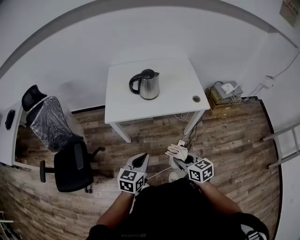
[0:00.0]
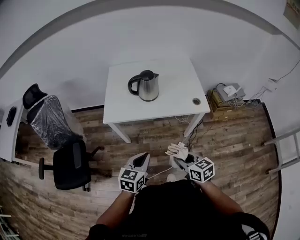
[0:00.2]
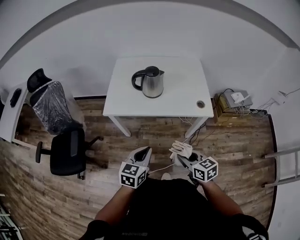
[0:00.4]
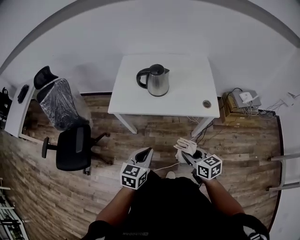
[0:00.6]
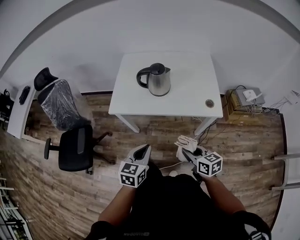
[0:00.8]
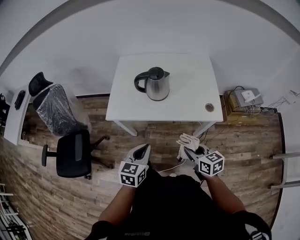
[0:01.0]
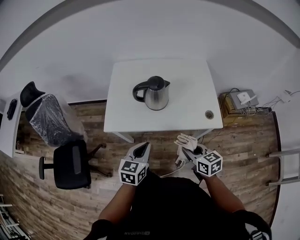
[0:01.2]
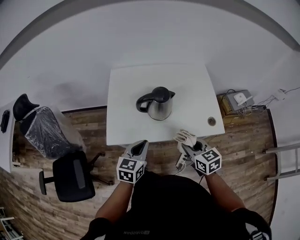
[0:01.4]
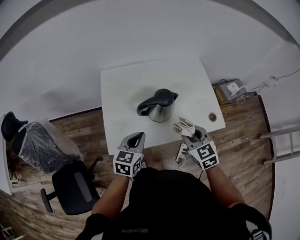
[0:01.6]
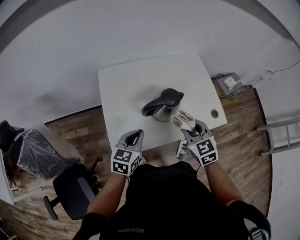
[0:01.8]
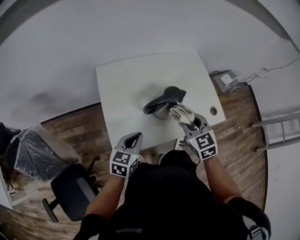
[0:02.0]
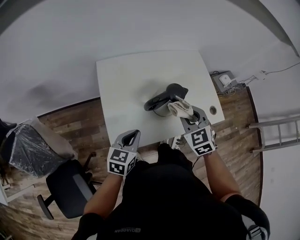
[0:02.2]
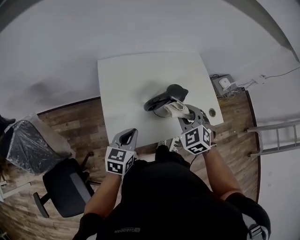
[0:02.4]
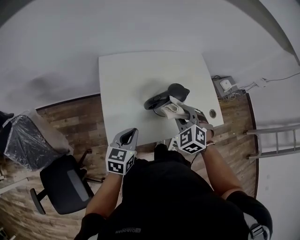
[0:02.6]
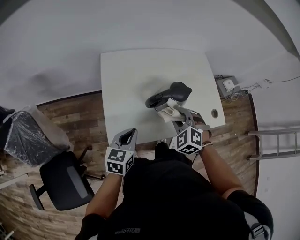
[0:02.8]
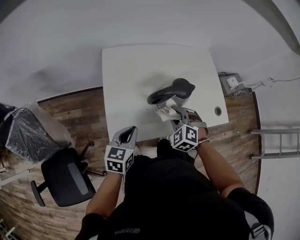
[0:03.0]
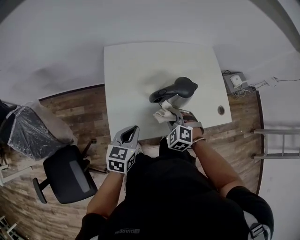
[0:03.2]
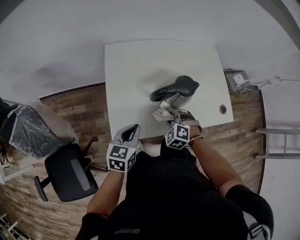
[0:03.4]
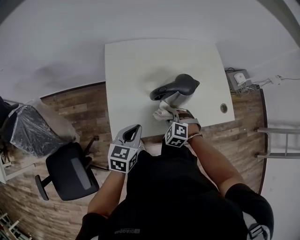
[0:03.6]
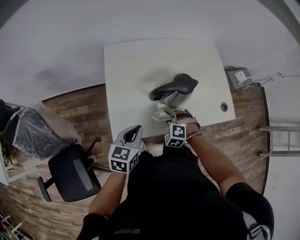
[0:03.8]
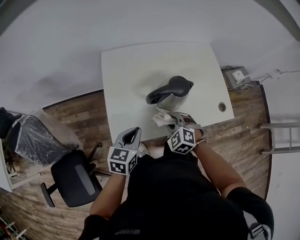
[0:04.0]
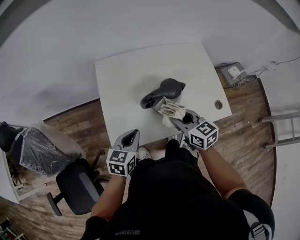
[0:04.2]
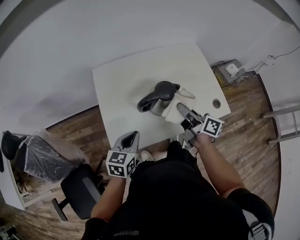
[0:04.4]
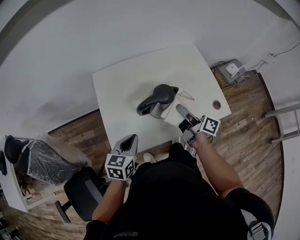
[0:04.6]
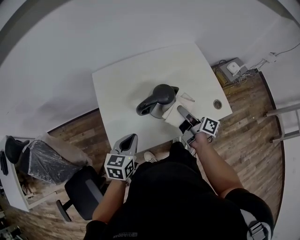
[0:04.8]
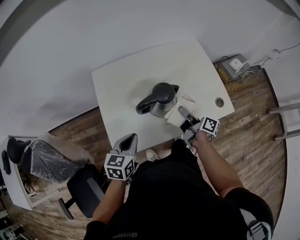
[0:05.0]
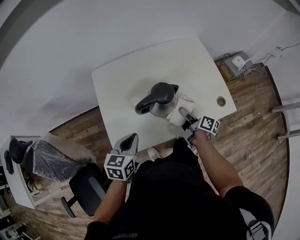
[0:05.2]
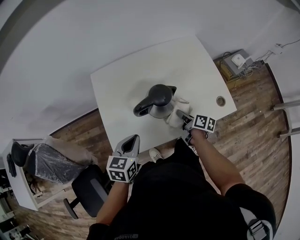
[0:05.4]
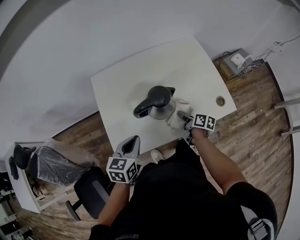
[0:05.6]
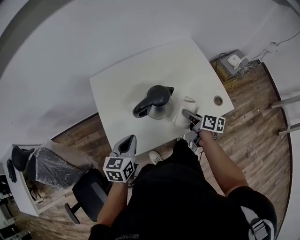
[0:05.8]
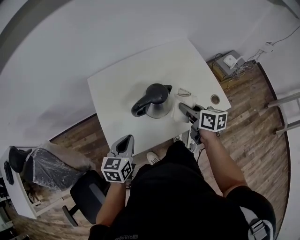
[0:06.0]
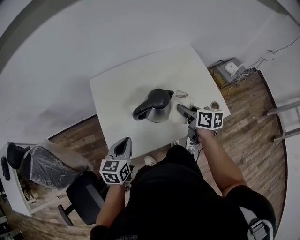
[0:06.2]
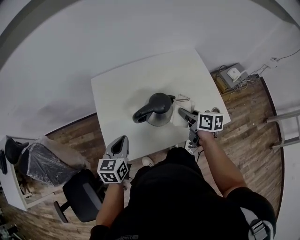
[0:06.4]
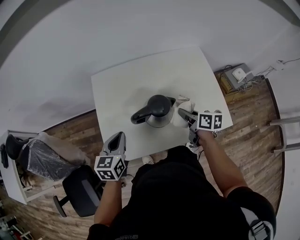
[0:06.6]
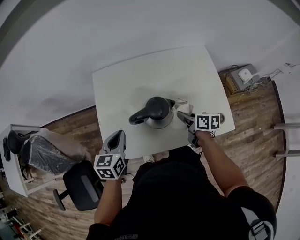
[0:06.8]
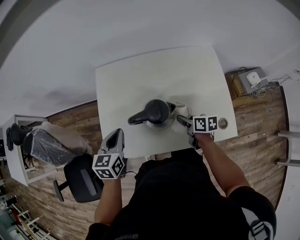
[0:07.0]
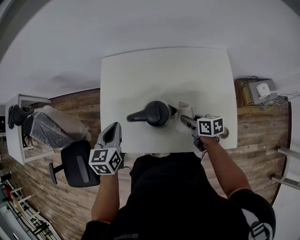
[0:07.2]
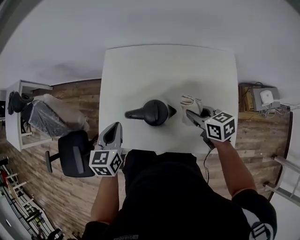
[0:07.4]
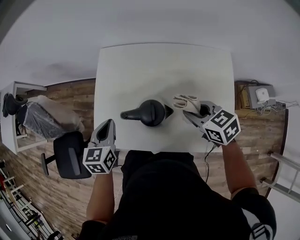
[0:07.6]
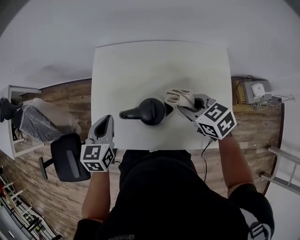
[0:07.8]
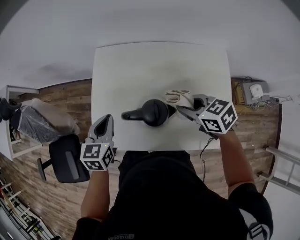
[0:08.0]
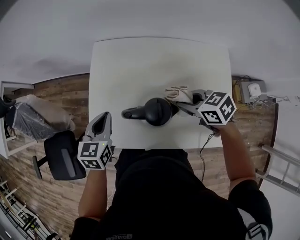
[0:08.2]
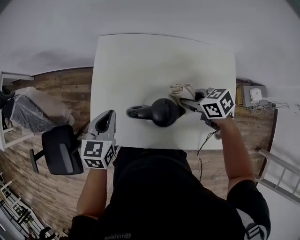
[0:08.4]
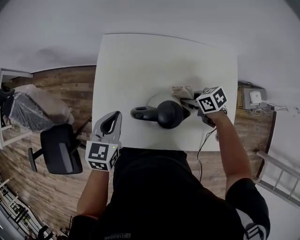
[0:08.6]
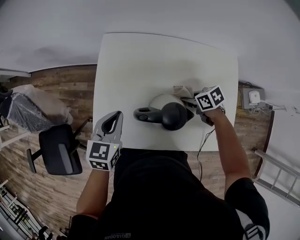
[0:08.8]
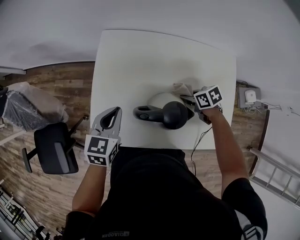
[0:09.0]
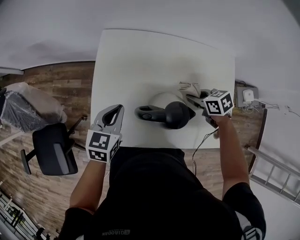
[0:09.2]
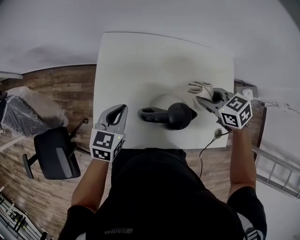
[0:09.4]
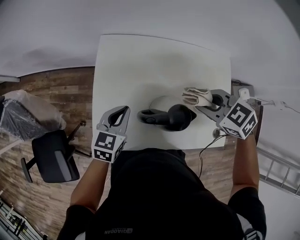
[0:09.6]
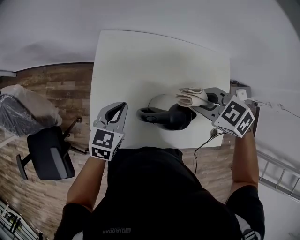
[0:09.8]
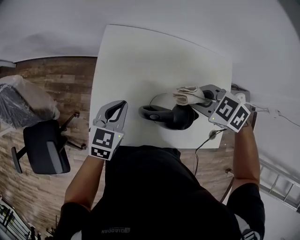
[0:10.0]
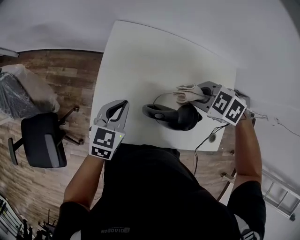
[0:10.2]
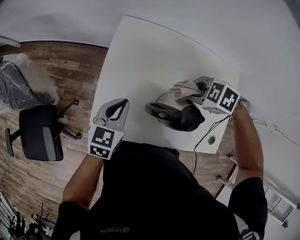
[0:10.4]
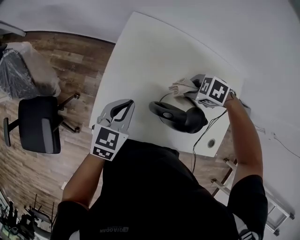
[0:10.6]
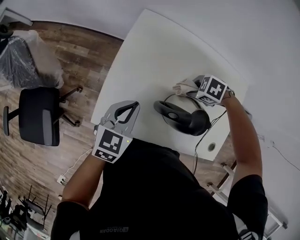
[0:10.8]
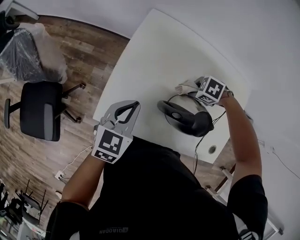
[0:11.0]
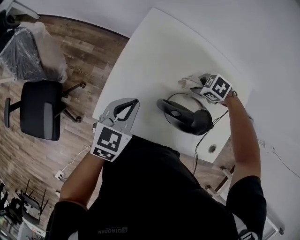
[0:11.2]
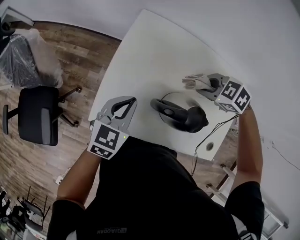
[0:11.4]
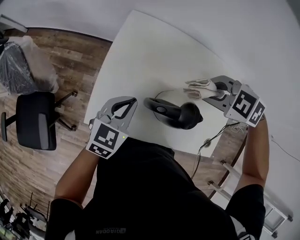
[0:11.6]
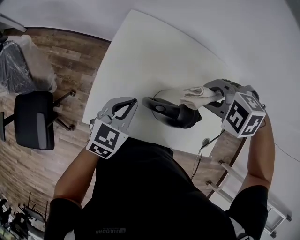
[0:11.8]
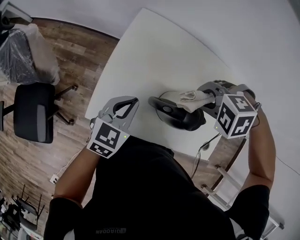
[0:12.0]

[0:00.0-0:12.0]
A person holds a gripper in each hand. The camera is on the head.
0:00.0 to 0:01.6: Both grippers move forward, roughly 35 cm. The right gripper turns by about 30 degrees.
0:01.6 to 0:03.0: The right gripper moves to the left and downward, approximately 15 cm, and twists roughly 40 degrees counterclockwise, seen from behind; the left gripper heads to the left and downward, covering some 10 cm.
0:03.0 to 0:04.4: The left gripper ends up roughly 5 cm from where it was; the right gripper shifts about 15 cm upward and to the right, and rotates around the line of its fingers by approximately 100 degrees, clockwise from behind.
0:04.4 to 0:06.0: The right gripper travels downward and back again, some 20 cm each way, and swivels about 20 degrees.
0:06.0 to 0:07.6: The right gripper moves about 15 cm downward and comes back, and changes its angle by about 60 degrees. The left gripper moves about 10 cm, and changes its angle by some 30 degrees.
0:07.6 to 0:09.0: The left gripper shifts by about 5 cm; the right gripper goes approximately 15 cm downward, and turns by roughly 30 degrees.
0:09.0 to 0:10.4: The right gripper heads upward, covering approximately 10 cm, and rolls counterclockwise, seen from behind, by roughly 50 degrees.
0:10.4 to 0:12.0: The right gripper goes downward and returns, some 10 cm each way, and rotates approximately 40 degrees.

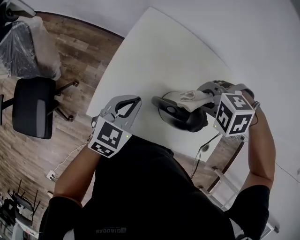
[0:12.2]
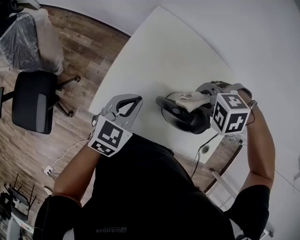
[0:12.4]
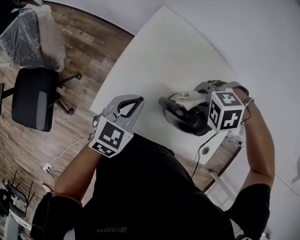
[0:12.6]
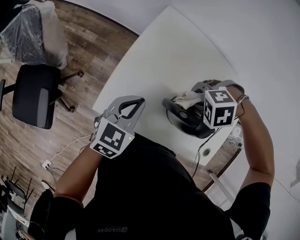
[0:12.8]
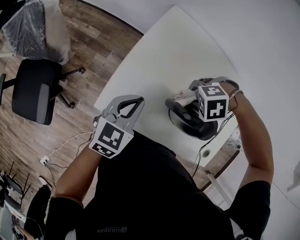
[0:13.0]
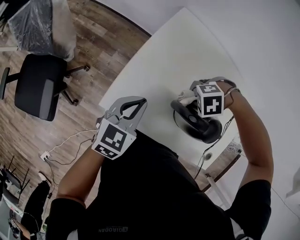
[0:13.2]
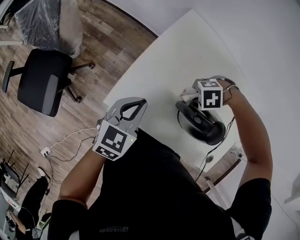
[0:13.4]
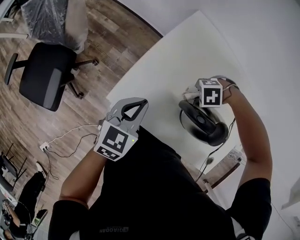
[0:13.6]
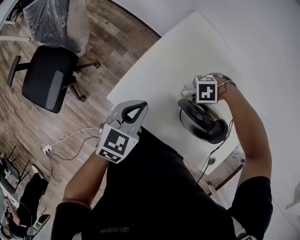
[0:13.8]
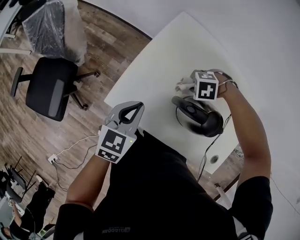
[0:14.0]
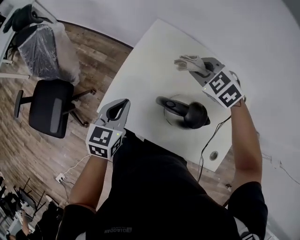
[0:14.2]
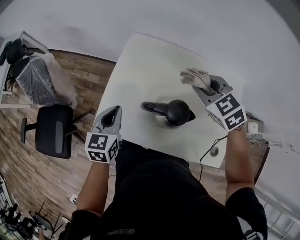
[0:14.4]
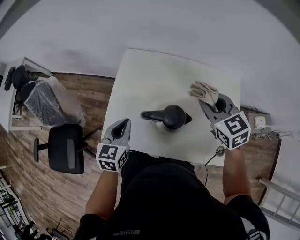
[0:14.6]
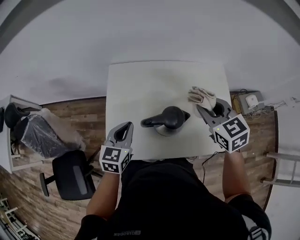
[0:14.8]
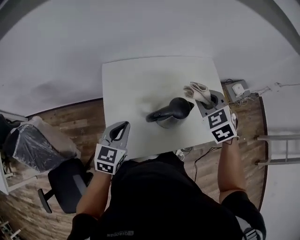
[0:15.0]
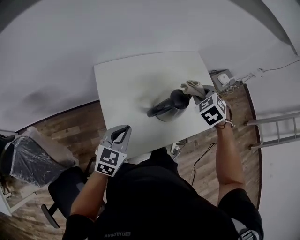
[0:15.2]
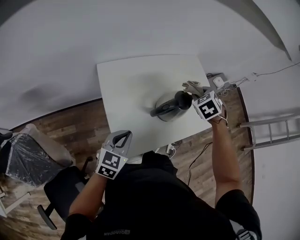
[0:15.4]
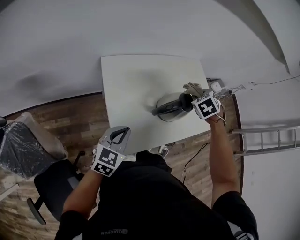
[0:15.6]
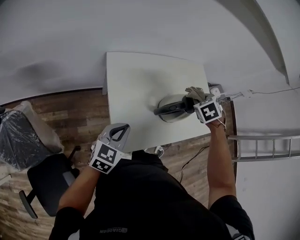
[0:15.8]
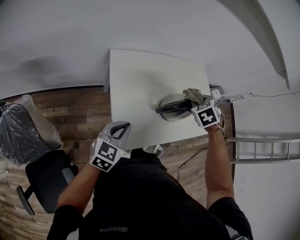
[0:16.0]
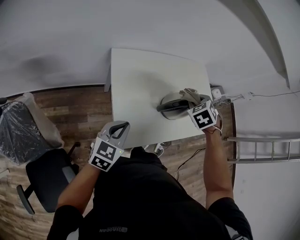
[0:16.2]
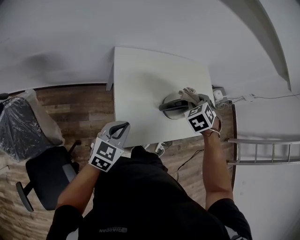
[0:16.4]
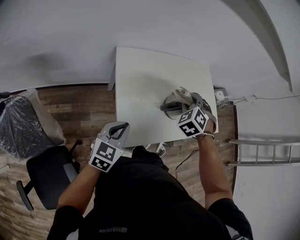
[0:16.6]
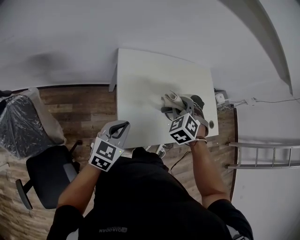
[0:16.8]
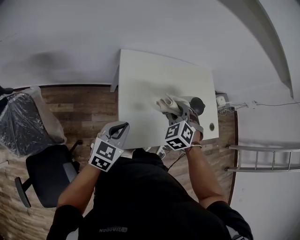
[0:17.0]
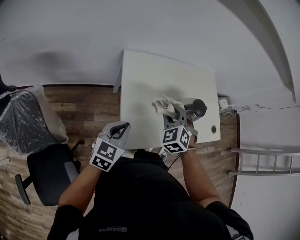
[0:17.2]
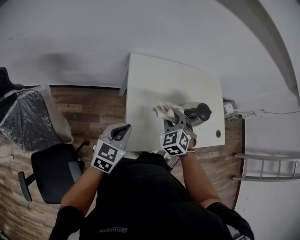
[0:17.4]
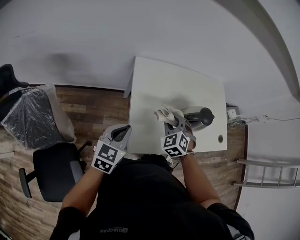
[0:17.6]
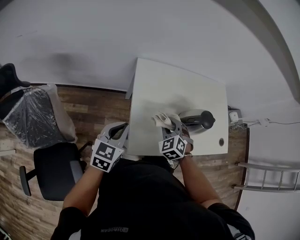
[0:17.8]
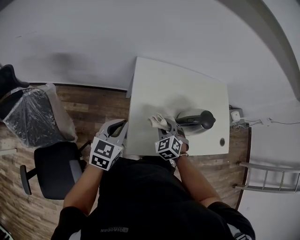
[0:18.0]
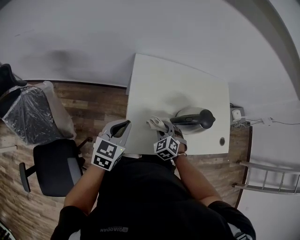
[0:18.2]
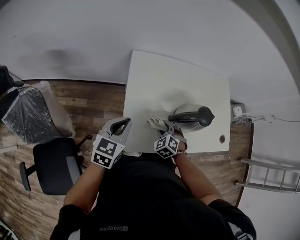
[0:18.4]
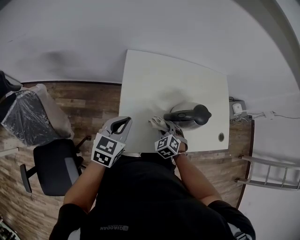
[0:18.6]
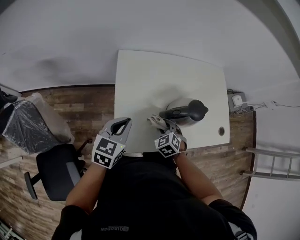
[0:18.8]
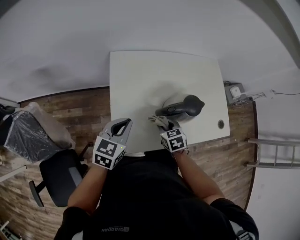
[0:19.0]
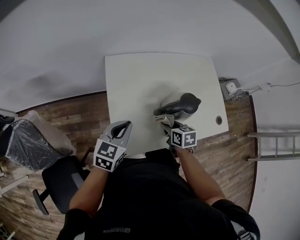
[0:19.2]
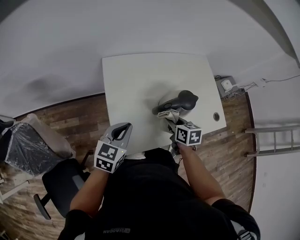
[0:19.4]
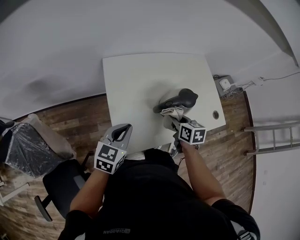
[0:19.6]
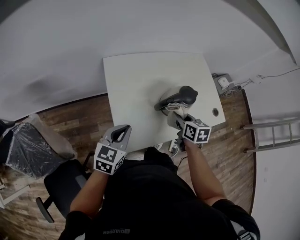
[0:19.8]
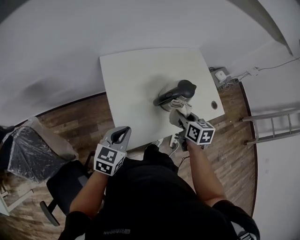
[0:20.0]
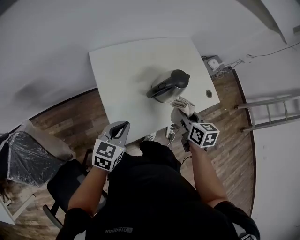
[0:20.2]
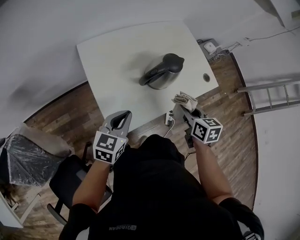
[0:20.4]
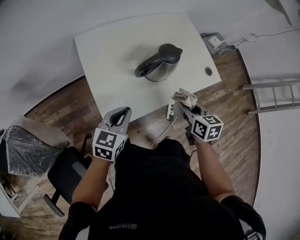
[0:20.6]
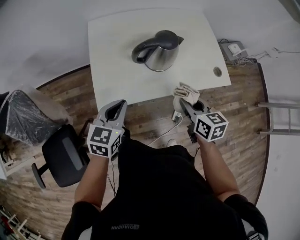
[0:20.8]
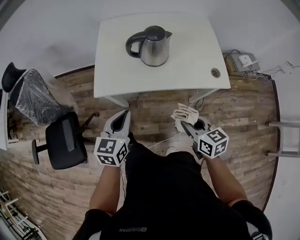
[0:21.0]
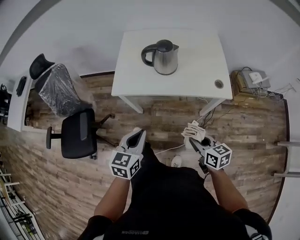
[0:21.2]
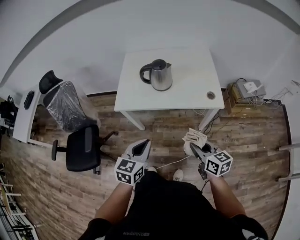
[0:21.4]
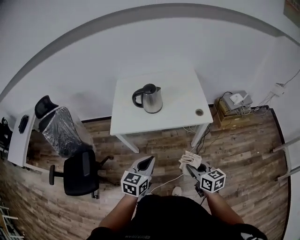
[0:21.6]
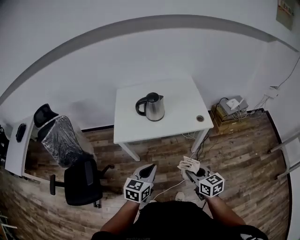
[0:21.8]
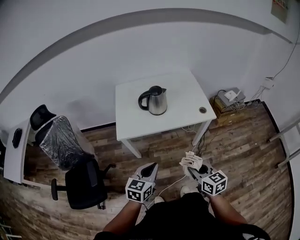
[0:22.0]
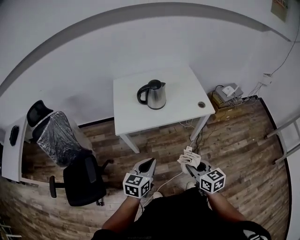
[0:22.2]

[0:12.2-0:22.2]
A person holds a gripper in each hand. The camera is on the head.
0:12.2 to 0:13.6: The left gripper shifts by roughly 10 cm, while the right gripper is displaced downward by approximately 20 cm, and changes its angle by about 20 degrees.
0:13.6 to 0:15.0: The left gripper travels upward by approximately 5 cm, and turns by approximately 30 degrees. Meanwhile the right gripper is displaced upward by roughly 30 cm, and rotates roughly 110 degrees.
0:15.0 to 0:16.4: The right gripper shifts by some 10 cm, and changes its angle by some 30 degrees. Meanwhile the left gripper moves approximately 15 cm.
0:16.4 to 0:18.0: The right gripper moves some 20 cm, and rotates some 30 degrees. Meanwhile the left gripper ends up approximately 5 cm from where it was.
0:18.0 to 0:19.4: The grippers both shift to the right by some 15 cm. The right gripper twists about 70 degrees clockwise, seen from behind.
0:19.4 to 0:20.8: Both grippers travel together to the right and backward, about 20 cm.
0:20.8 to 0:22.2: Both grippers move backward, some 30 cm.

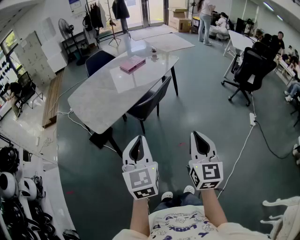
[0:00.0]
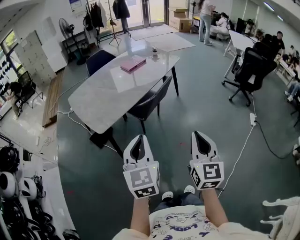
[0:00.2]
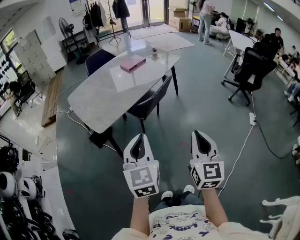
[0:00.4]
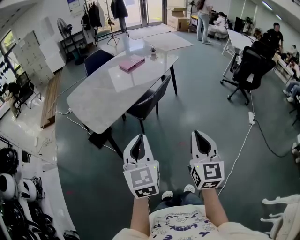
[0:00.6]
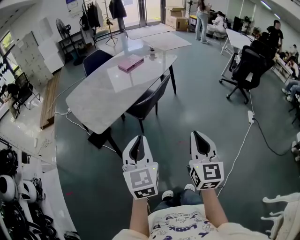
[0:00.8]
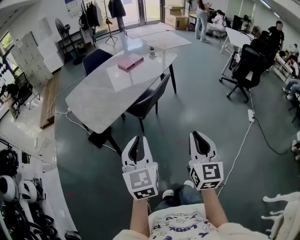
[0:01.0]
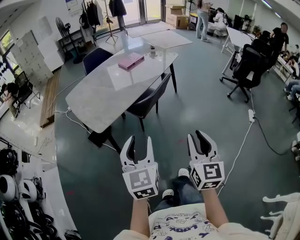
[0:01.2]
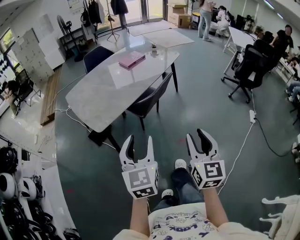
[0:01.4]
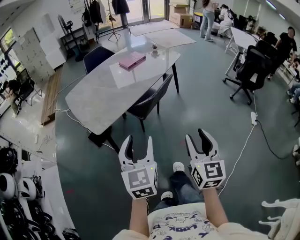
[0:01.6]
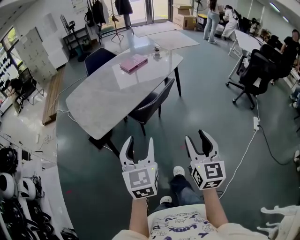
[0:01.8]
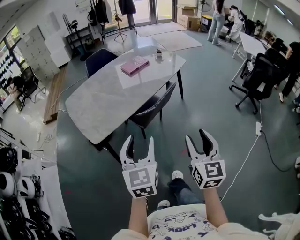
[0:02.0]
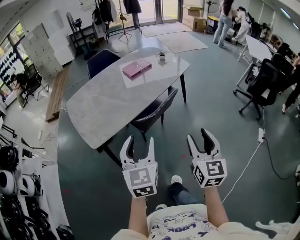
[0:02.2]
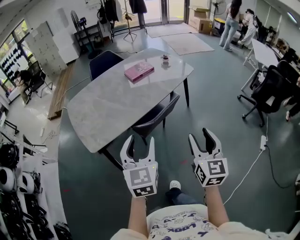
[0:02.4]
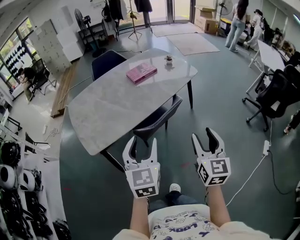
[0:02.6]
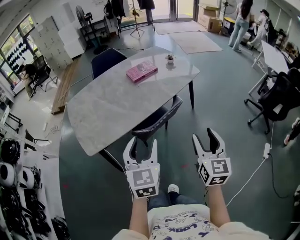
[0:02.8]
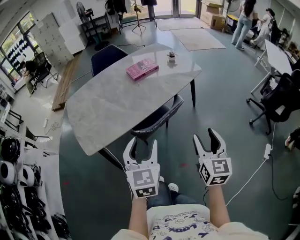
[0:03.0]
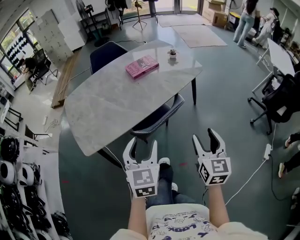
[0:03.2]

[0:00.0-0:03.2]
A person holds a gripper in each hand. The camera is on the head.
0:00.0 to 0:01.6: The left gripper opens; the right gripper opens its fingers.
0:01.6 to 0:03.2: The two grippers go about 35 cm forward and to the right.
